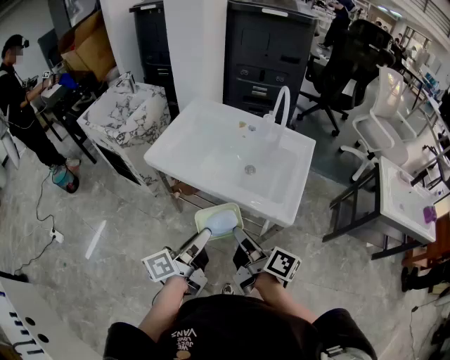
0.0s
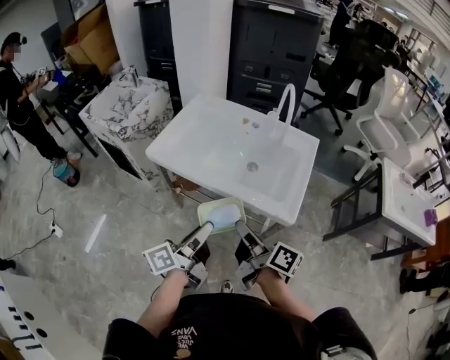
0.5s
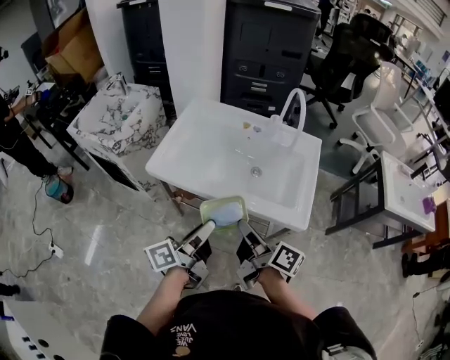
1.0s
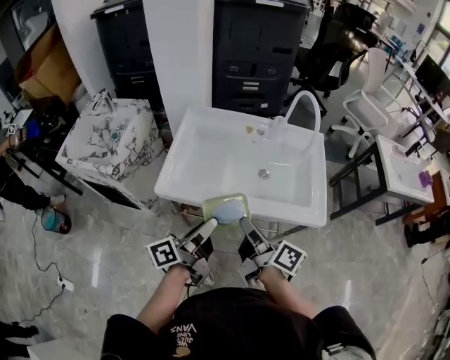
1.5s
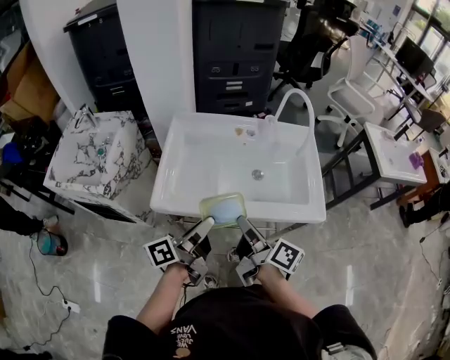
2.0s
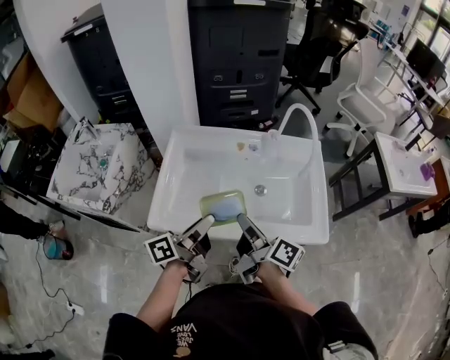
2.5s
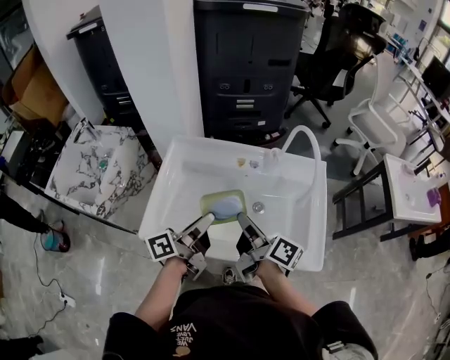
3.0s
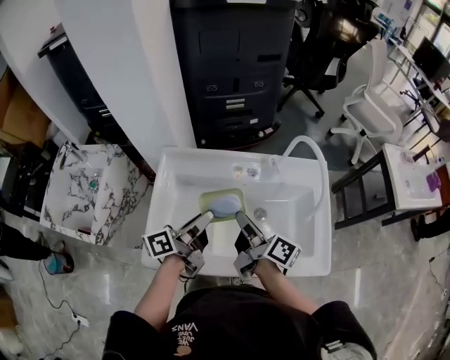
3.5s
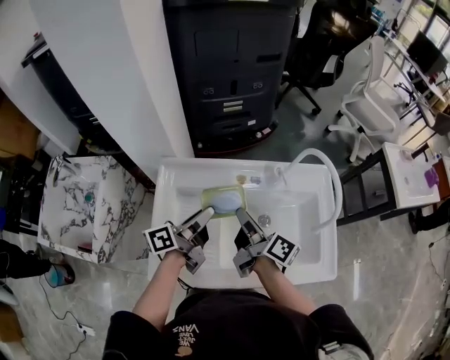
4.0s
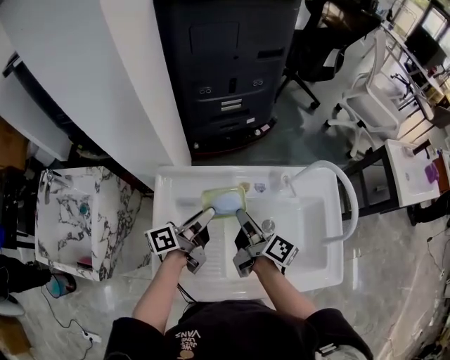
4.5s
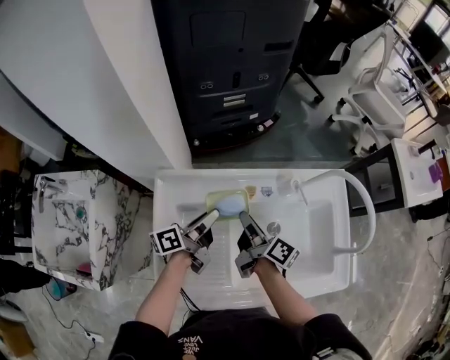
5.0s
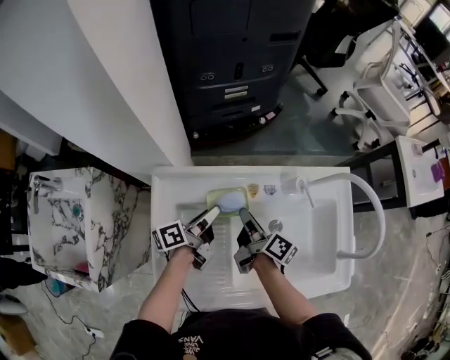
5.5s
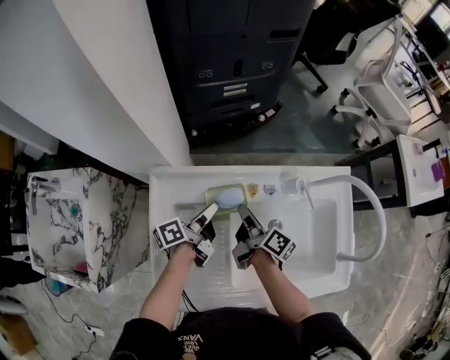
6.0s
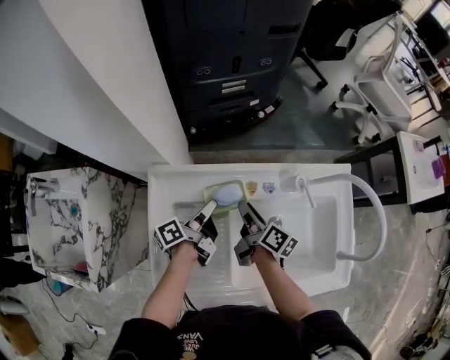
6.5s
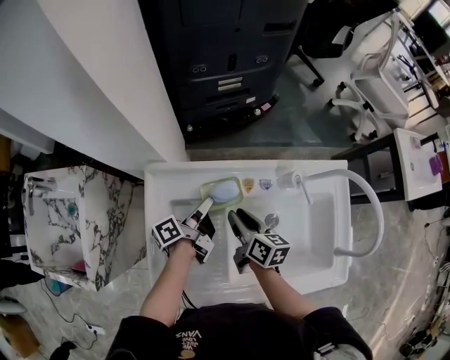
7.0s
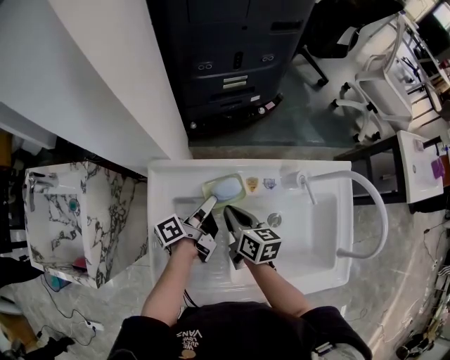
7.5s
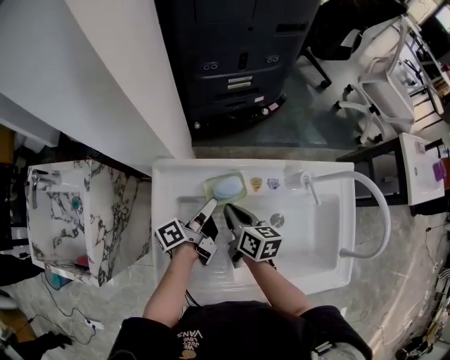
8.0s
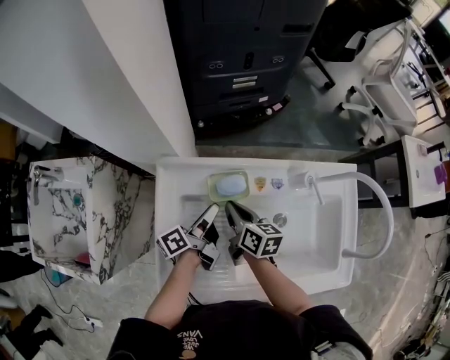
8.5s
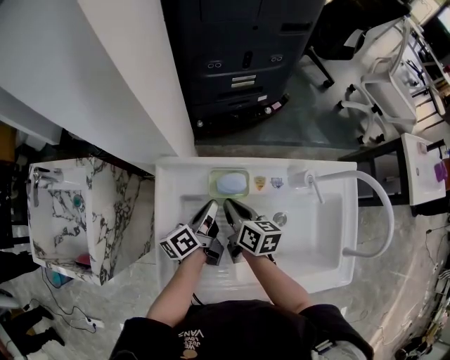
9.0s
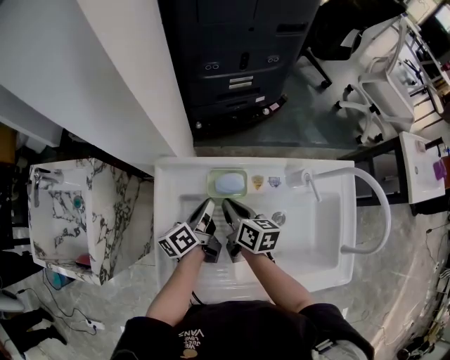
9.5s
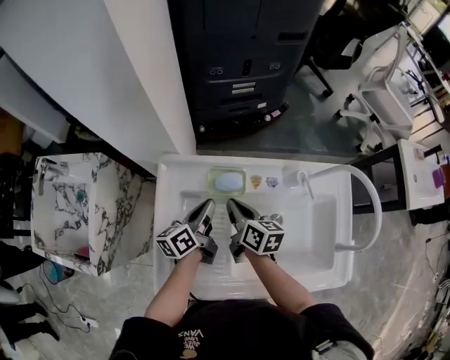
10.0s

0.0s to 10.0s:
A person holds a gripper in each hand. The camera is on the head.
0.0s to 2.0s: The left gripper heads forward and to the left, covering some 25 cm, and changes its angle by approximately 30 degrees. Meanwhile the right gripper shifts approximately 20 cm to the left and forward, and changes its angle by approximately 20 degrees.
2.0s to 4.0s: The grippers both shift forward by about 30 cm.
4.0s to 6.0s: The grippers both shift downward and forward by roughly 15 cm.
6.0s to 8.0s: The right gripper travels to the left by about 5 cm, and changes its angle by roughly 40 degrees.
8.0s to 10.0s: The left gripper rotates roughly 30 degrees, and closes up.

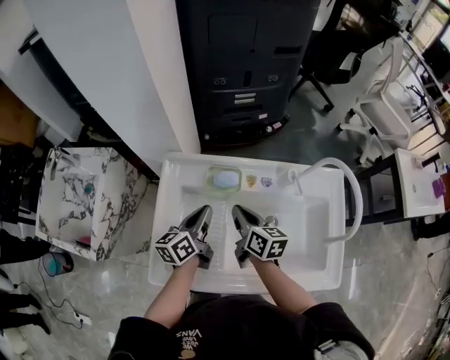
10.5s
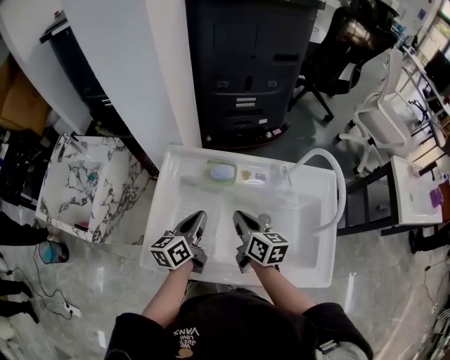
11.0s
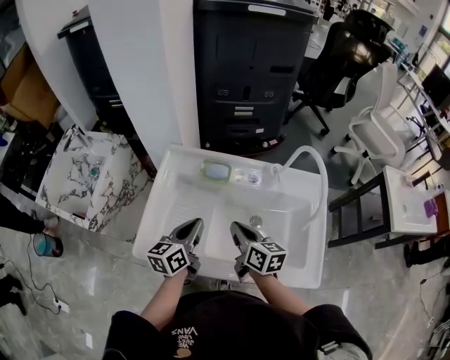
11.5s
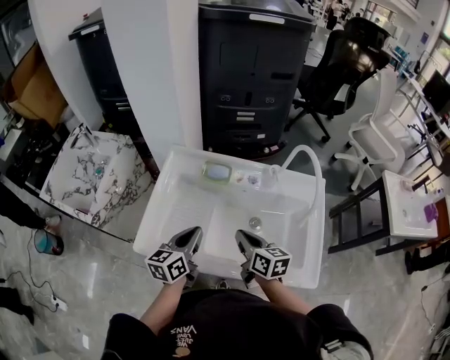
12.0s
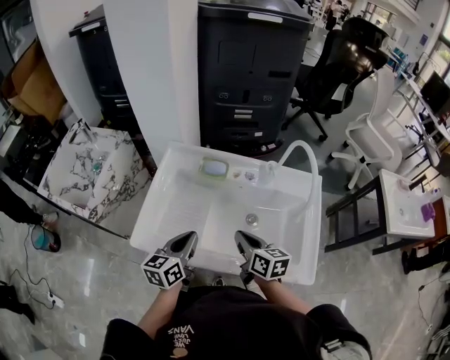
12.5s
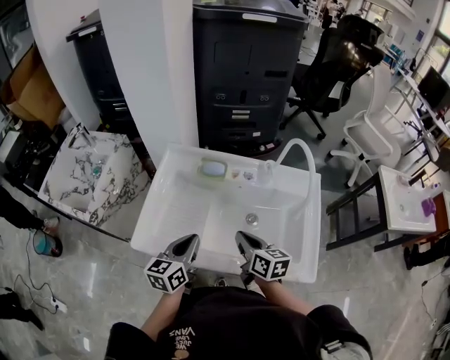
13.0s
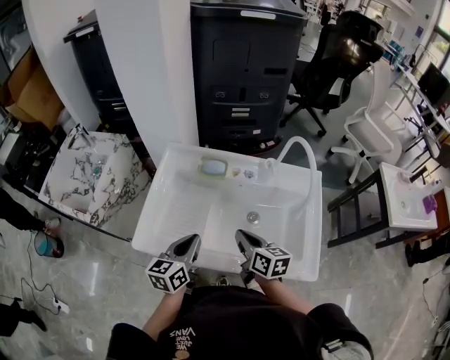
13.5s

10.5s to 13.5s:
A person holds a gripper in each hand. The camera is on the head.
10.5s to 12.0s: The left gripper heads backward, covering some 15 cm. Meanwhile the right gripper moves backward and to the right, about 15 cm.
12.0s to 13.5s: The grippers make only small movements.

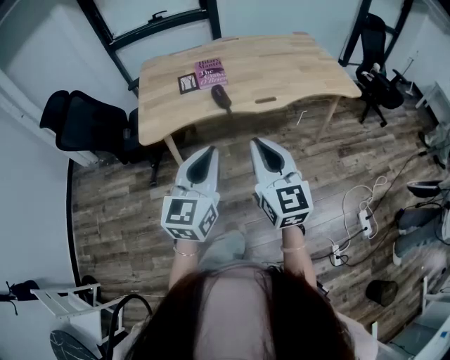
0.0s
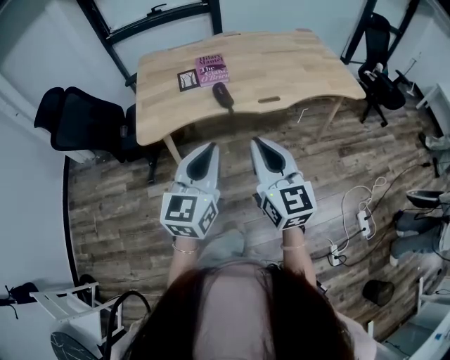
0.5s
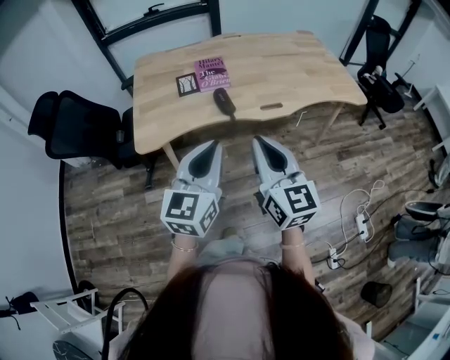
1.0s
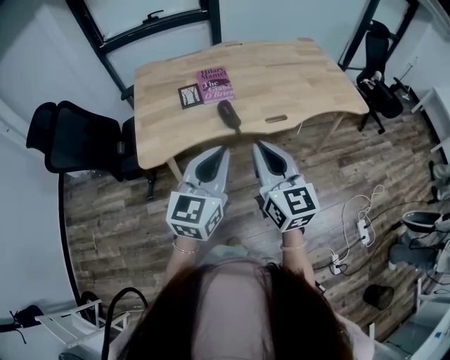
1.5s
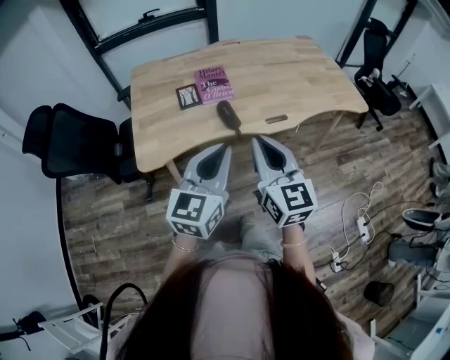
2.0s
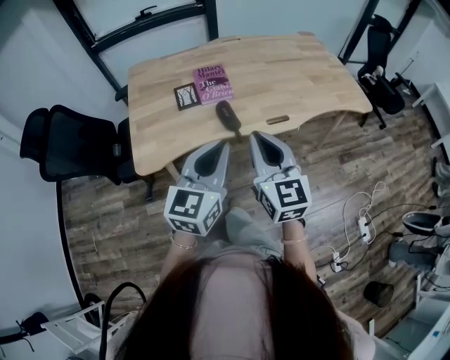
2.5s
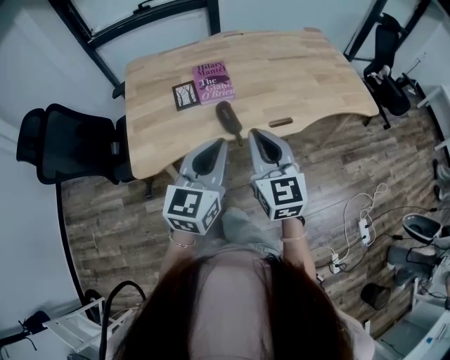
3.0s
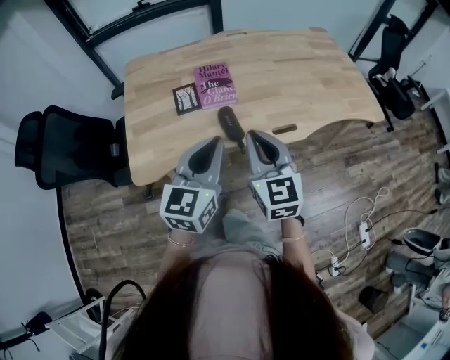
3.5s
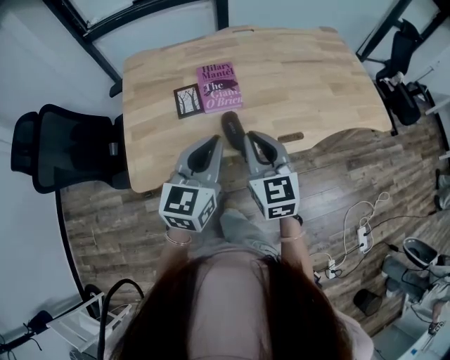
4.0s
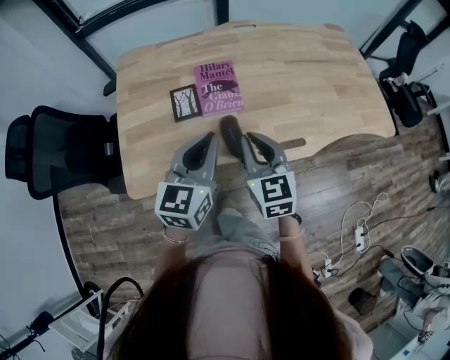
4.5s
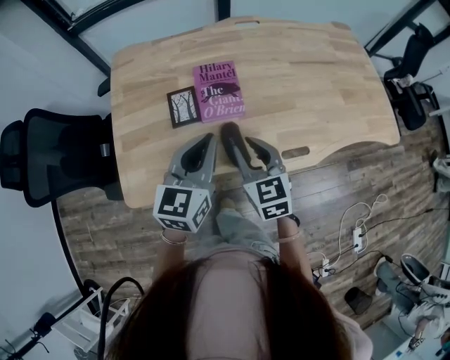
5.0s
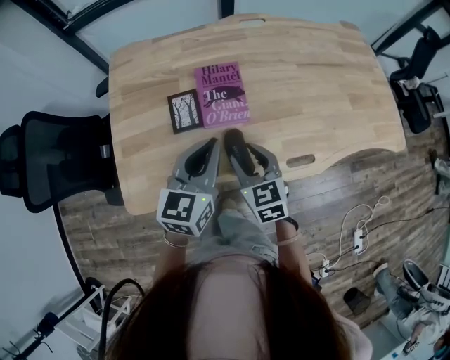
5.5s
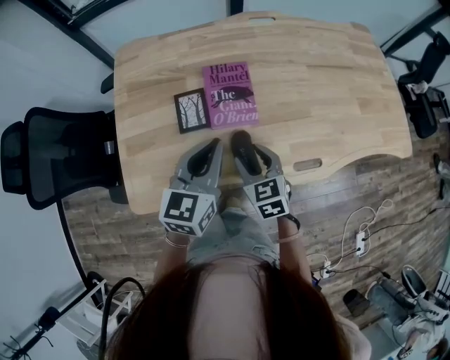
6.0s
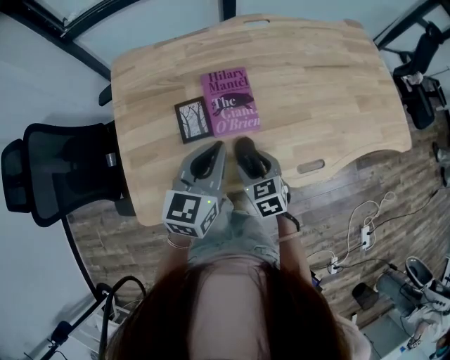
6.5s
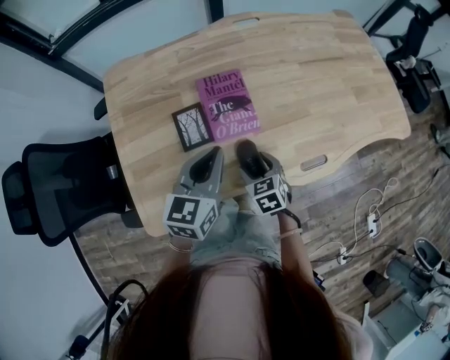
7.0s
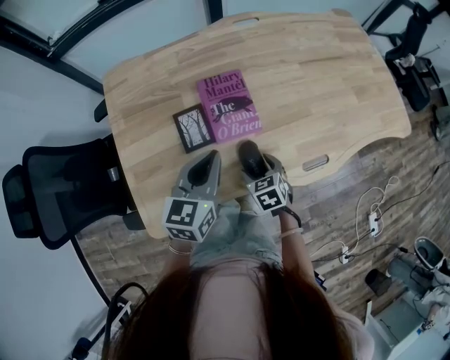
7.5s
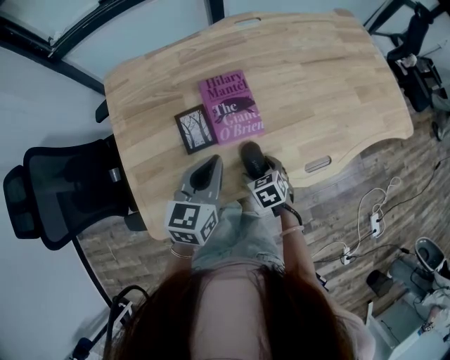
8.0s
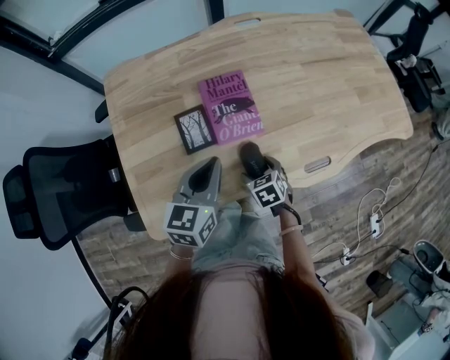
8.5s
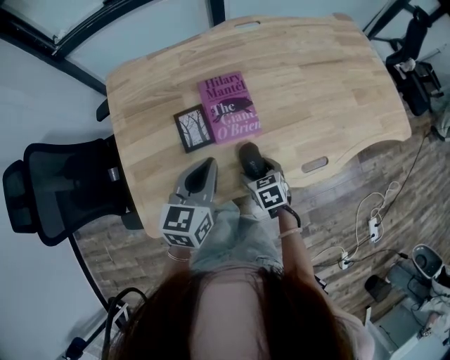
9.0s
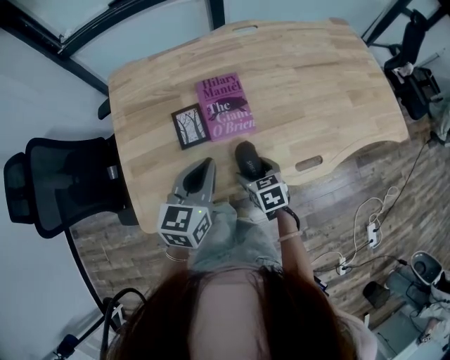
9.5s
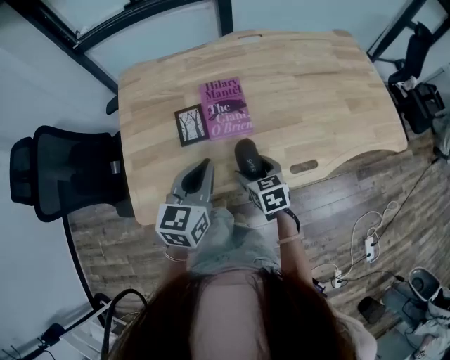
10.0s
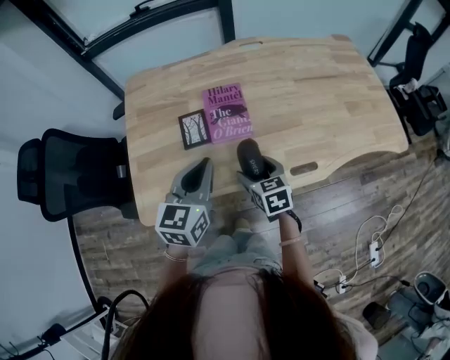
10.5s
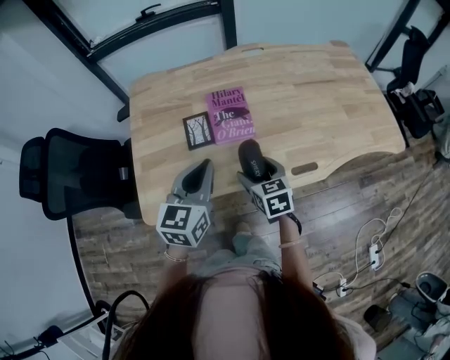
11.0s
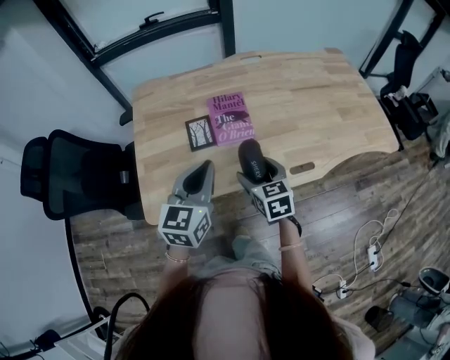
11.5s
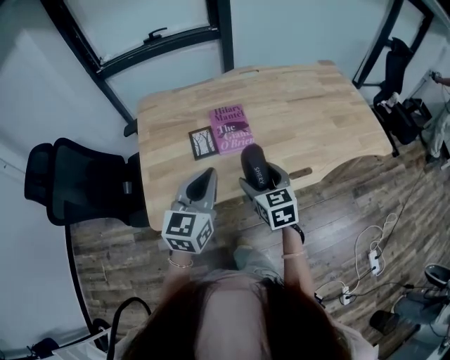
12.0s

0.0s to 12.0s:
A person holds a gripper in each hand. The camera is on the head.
0.0s to 2.0s: The right gripper shifts about 20 cm forward and to the left. The left gripper shifts approximately 15 cm forward.
2.0s to 4.0s: Both grippers travel together forward, some 20 cm.
4.0s to 6.0s: The right gripper is displaced downward and forward by approximately 20 cm, swivels about 20 degrees, and opens; the left gripper goes about 20 cm forward and downward.
6.0s to 8.0s: The right gripper is displaced downward by about 15 cm, changes its angle by roughly 20 degrees, and opens, while the left gripper changes place by about 5 cm.
8.0s to 10.0s: The left gripper is displaced backward by about 5 cm. Meanwhile the right gripper travels upward by some 10 cm.
10.0s to 12.0s: The right gripper travels upward and backward by about 15 cm. The left gripper is displaced backward and upward by roughly 10 cm.

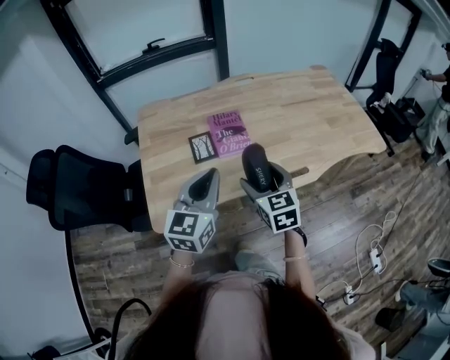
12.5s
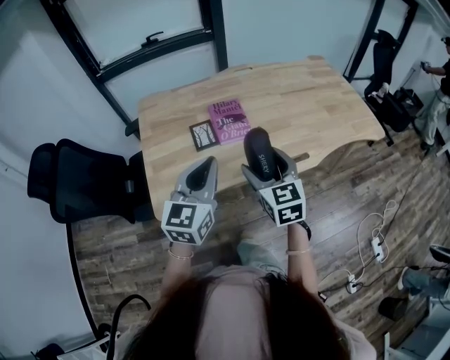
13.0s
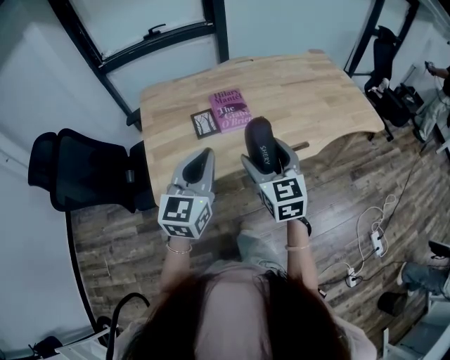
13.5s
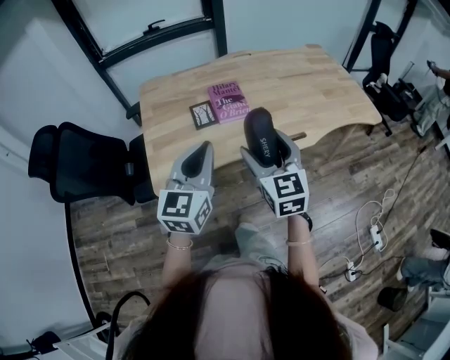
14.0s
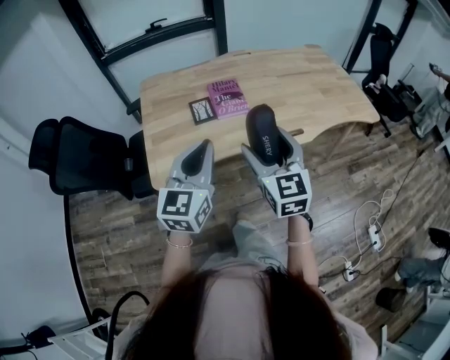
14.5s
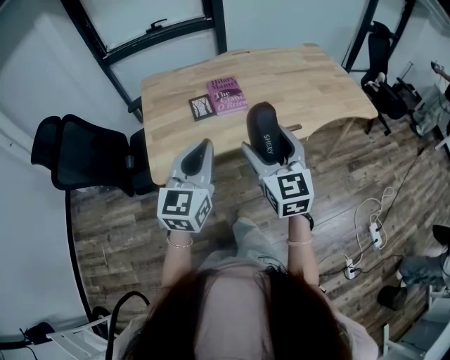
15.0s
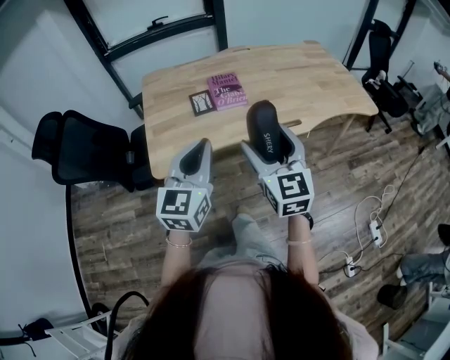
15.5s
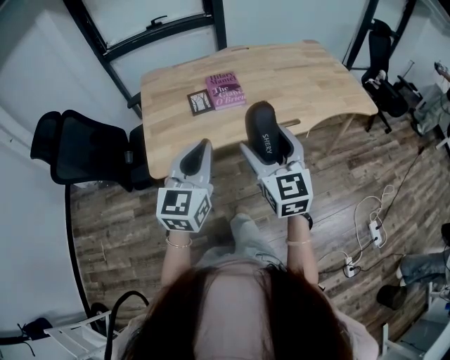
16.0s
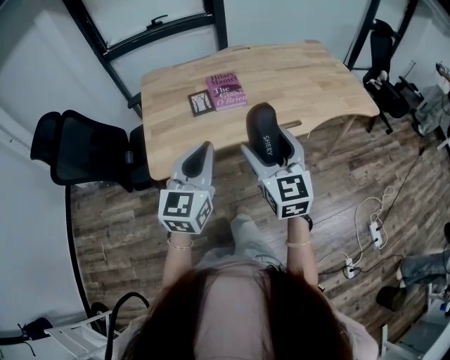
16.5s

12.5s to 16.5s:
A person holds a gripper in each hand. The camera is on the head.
12.5s to 14.5s: The right gripper shifts about 15 cm backward and upward. Meanwhile the left gripper travels backward by roughly 15 cm.
14.5s to 16.5s: The left gripper moves approximately 5 cm.
